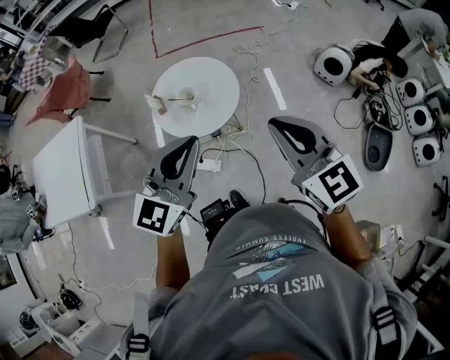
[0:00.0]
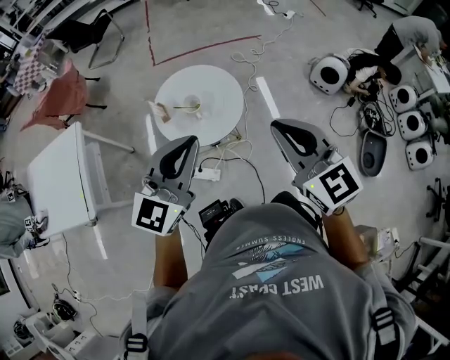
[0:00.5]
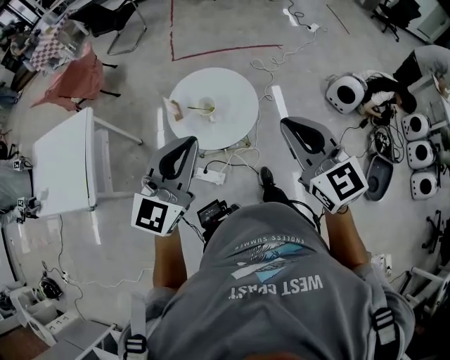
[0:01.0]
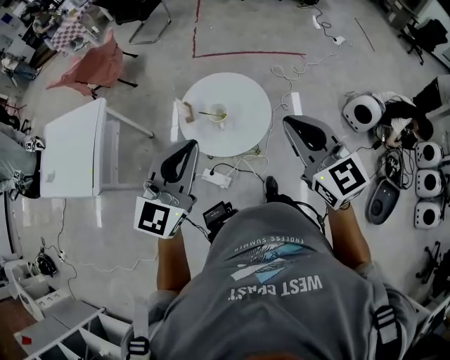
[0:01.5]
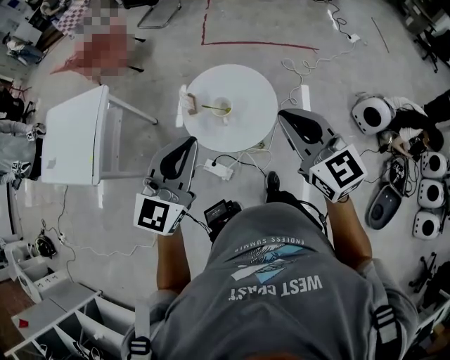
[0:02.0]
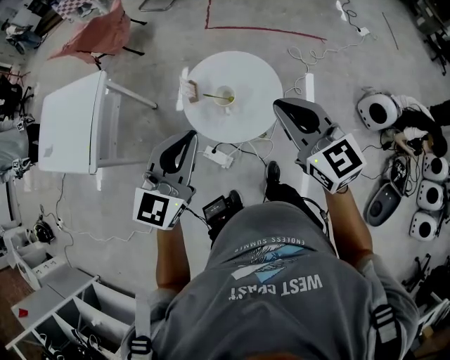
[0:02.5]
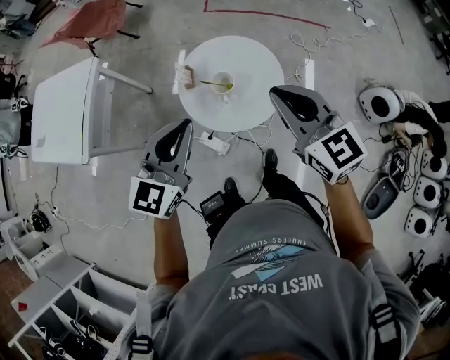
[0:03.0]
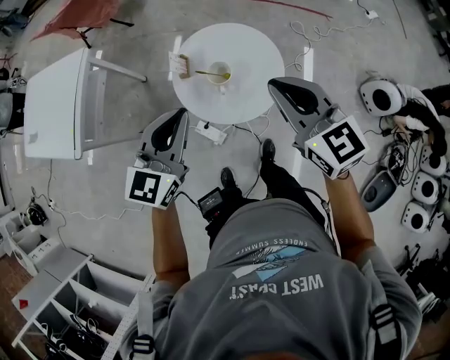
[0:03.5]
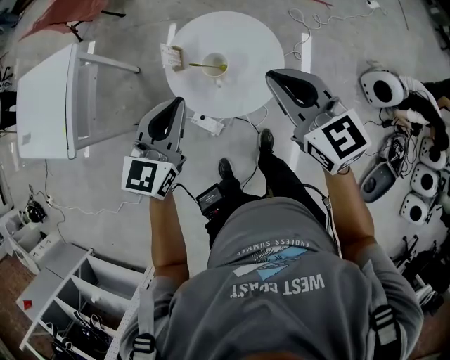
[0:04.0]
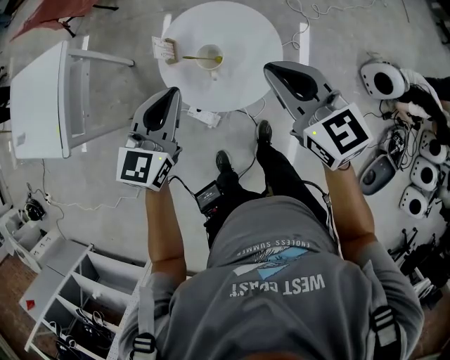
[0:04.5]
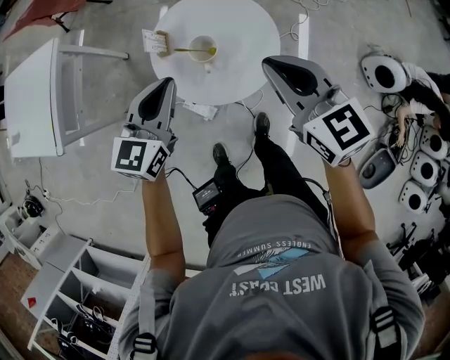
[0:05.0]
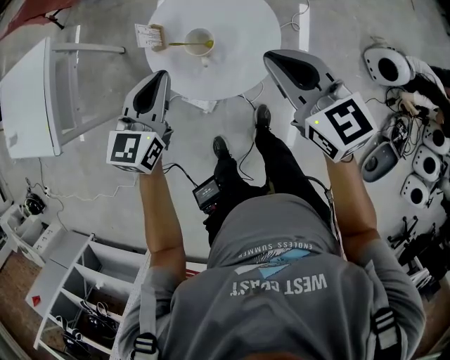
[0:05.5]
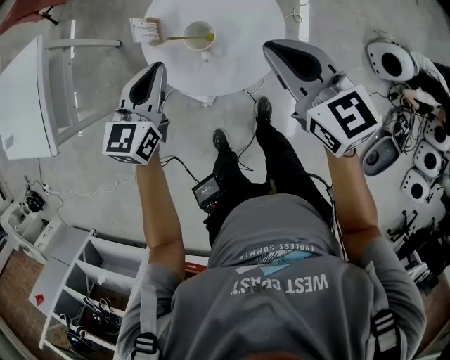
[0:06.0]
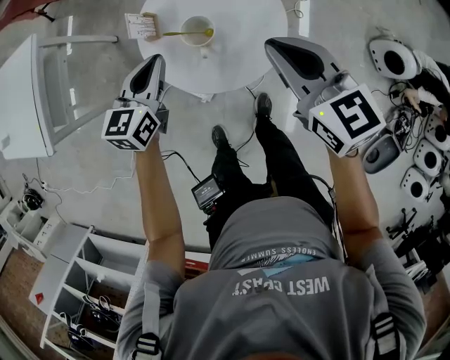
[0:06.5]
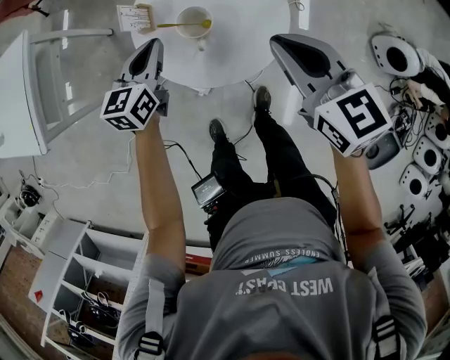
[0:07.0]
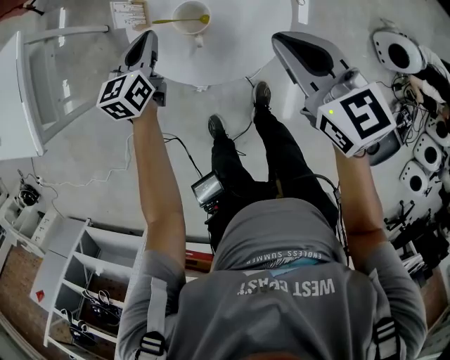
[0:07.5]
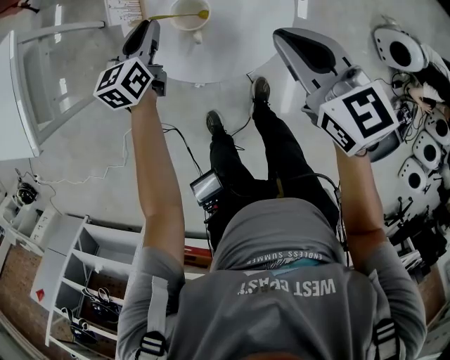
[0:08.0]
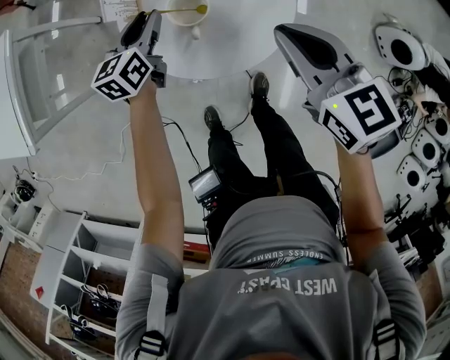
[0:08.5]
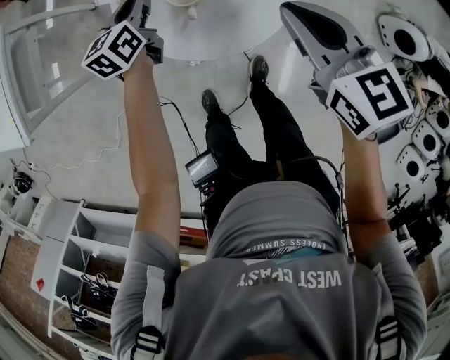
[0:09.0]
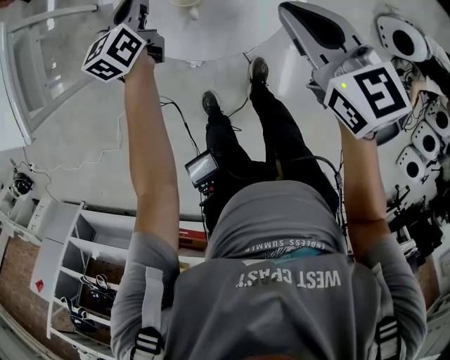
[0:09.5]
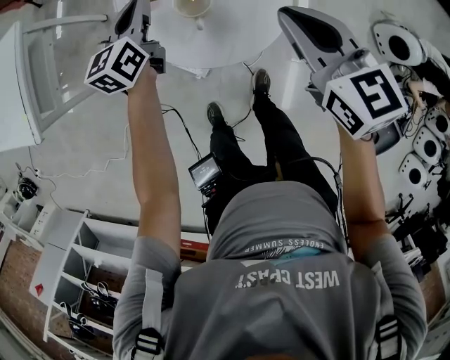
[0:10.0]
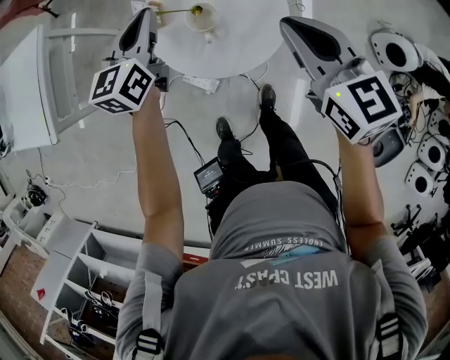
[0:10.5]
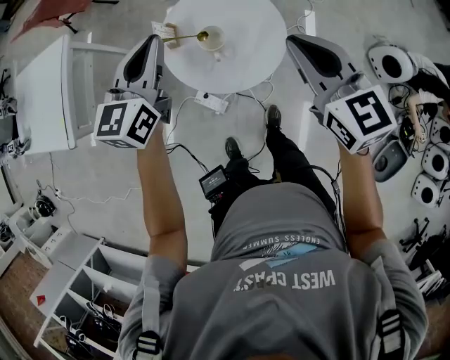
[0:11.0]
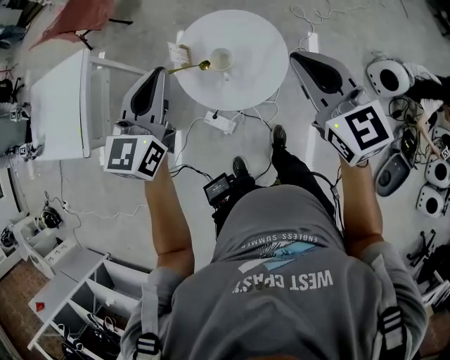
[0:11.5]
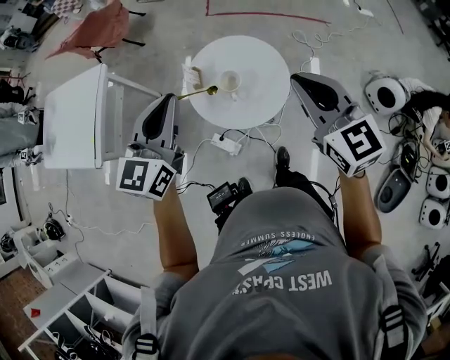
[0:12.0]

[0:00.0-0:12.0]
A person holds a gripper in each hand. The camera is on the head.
0:00.0 to 0:02.0: The left gripper heads forward and to the left, covering approximately 10 cm. The right gripper goes about 15 cm forward.
0:02.0 to 0:04.0: Both grippers move downward and forward, some 10 cm.
0:04.0 to 0:06.0: The right gripper heads downward, covering approximately 5 cm. The left gripper moves downward and forward, some 10 cm.
0:06.0 to 0:08.0: The right gripper travels downward by roughly 5 cm. Meanwhile the left gripper is displaced downward and forward by about 15 cm.
0:08.0 to 0:10.0: The left gripper goes roughly 5 cm upward.
0:10.0 to 0:12.0: The right gripper goes approximately 15 cm upward. The left gripper travels upward and backward by approximately 30 cm, and swivels some 30 degrees.

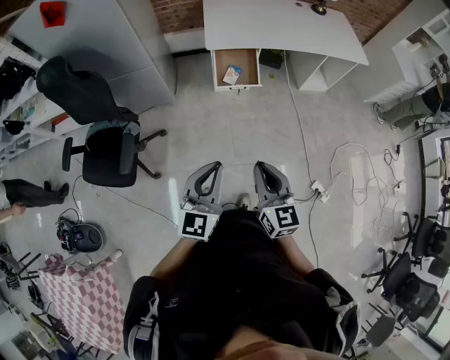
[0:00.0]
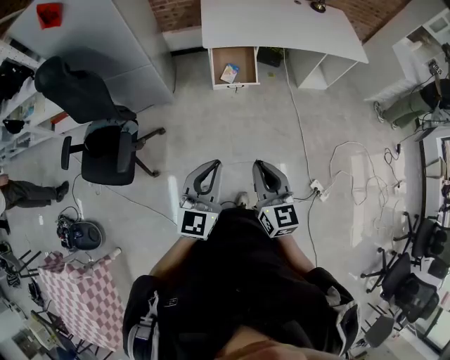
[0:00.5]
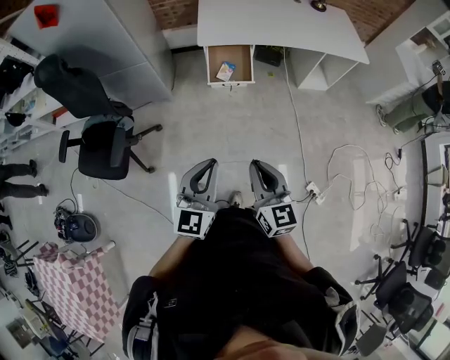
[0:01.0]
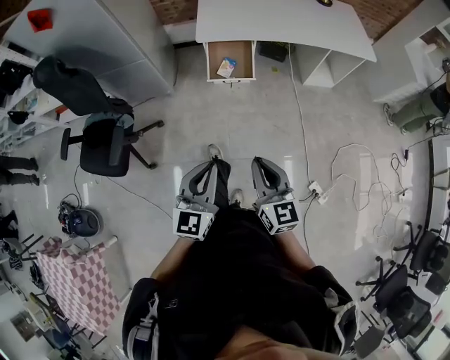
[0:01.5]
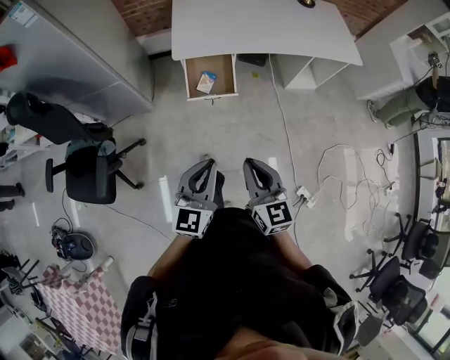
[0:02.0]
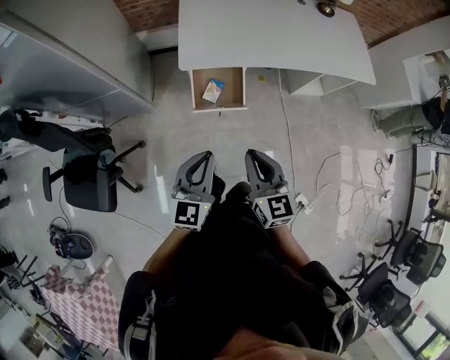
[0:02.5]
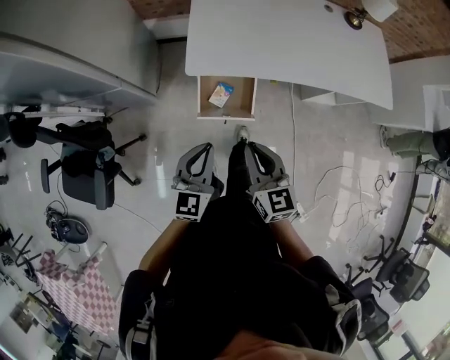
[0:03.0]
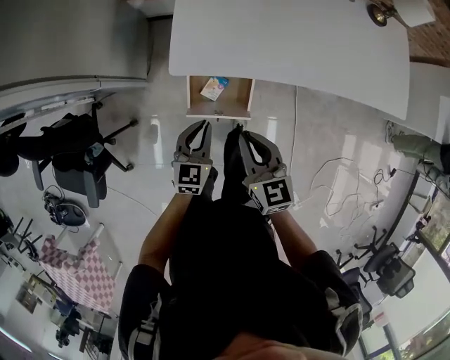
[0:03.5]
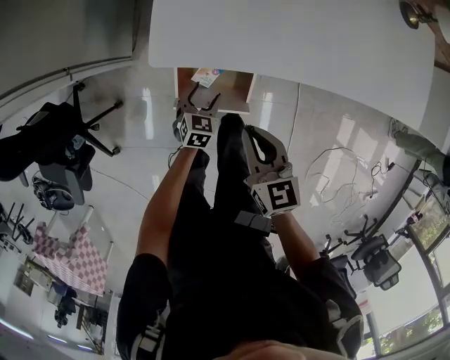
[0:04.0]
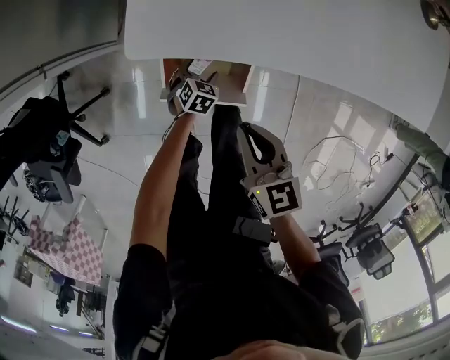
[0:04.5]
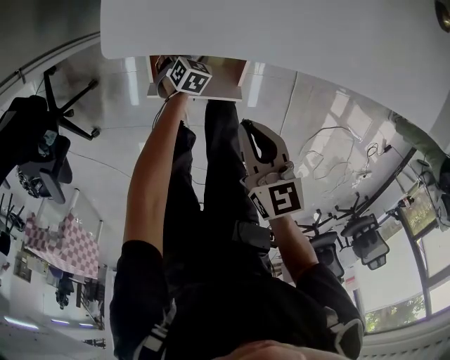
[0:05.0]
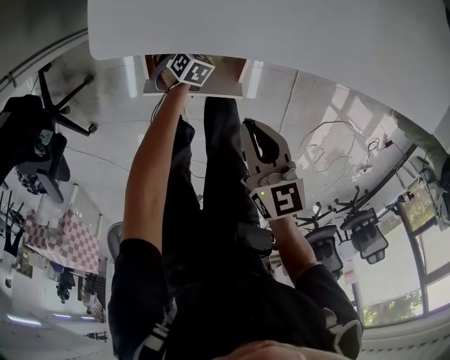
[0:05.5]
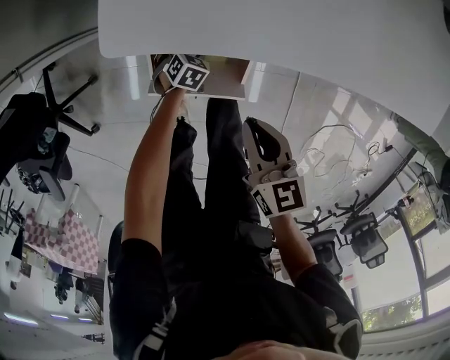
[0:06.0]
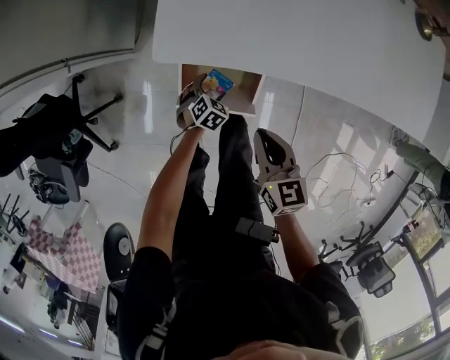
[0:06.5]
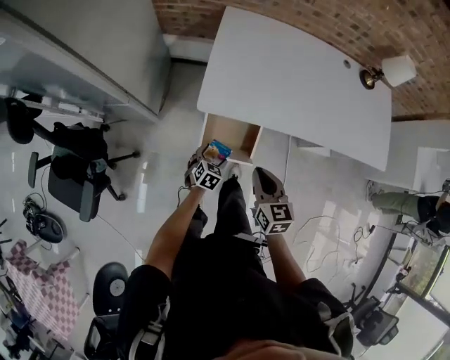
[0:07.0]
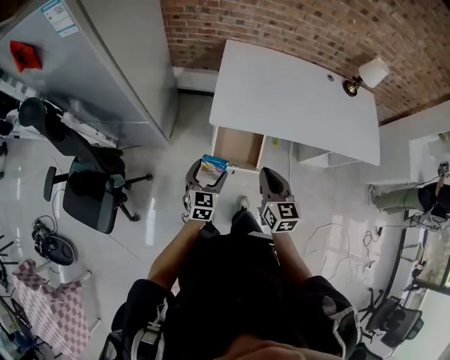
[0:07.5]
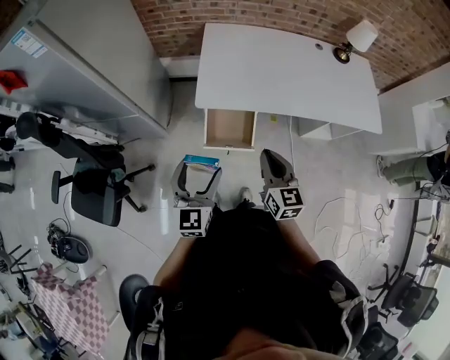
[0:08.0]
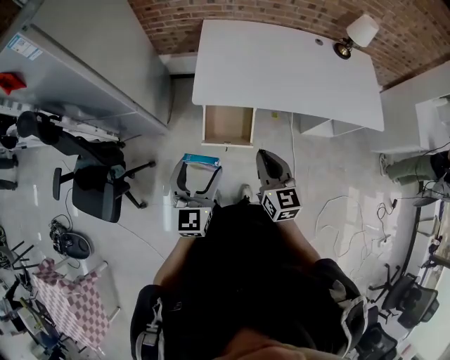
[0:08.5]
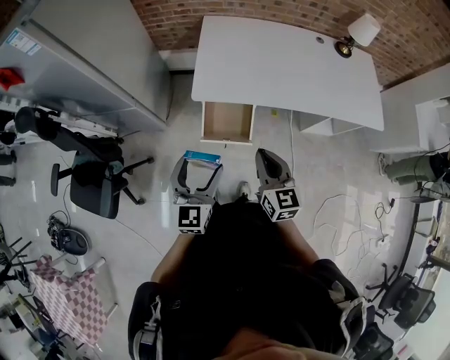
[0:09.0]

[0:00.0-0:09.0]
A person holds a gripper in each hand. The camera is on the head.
0:00.0 to 0:02.0: Both grippers move forward and to the right, about 20 cm.
0:02.0 to 0:04.5: Both grippers are carried forward, roughly 50 cm. The right gripper is displaced downward by some 30 cm, and rotates some 30 degrees, while the left gripper shifts some 60 cm downward, tilts its fingers approximately 50 degrees downward, and opens its fingers.
0:04.5 to 0:07.0: The two grippers go roughly 20 cm upward and backward.
0:07.0 to 0:09.0: The right gripper shifts about 20 cm upward and backward, while the left gripper is displaced upward by some 40 cm, and tips its fingers upward by roughly 40 degrees.

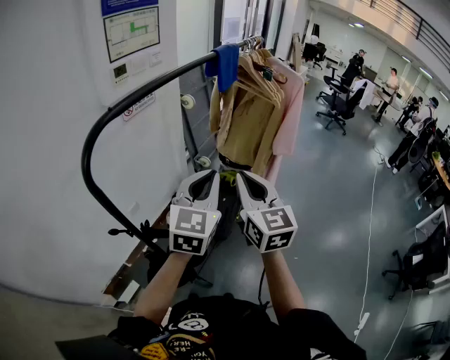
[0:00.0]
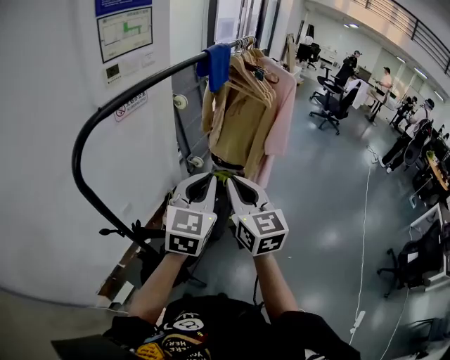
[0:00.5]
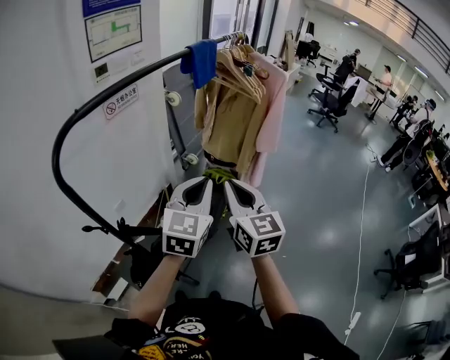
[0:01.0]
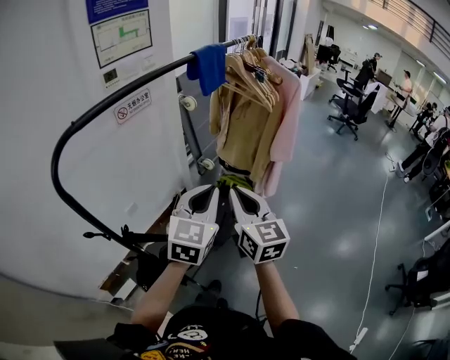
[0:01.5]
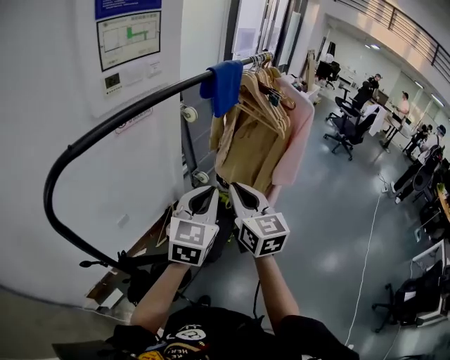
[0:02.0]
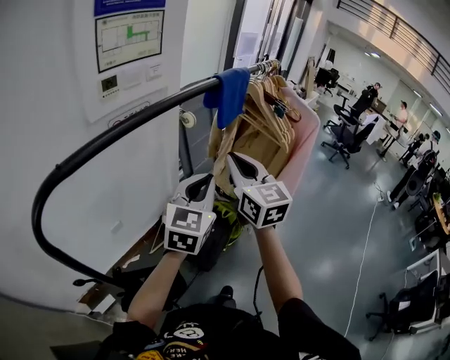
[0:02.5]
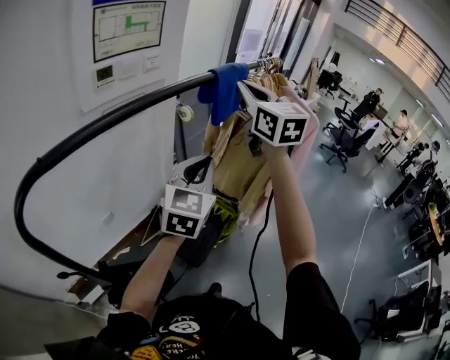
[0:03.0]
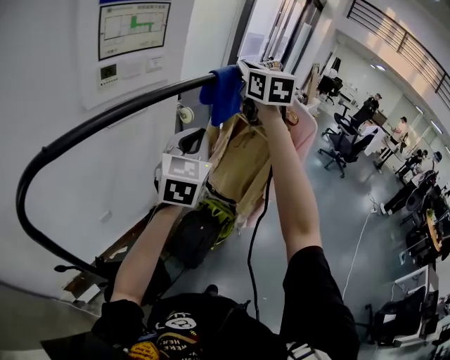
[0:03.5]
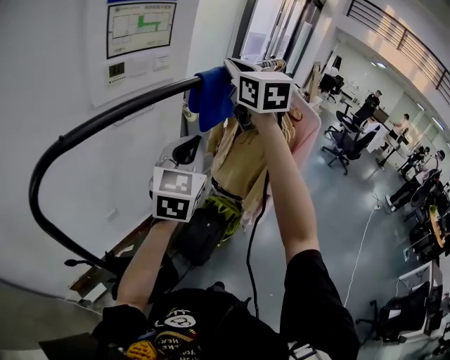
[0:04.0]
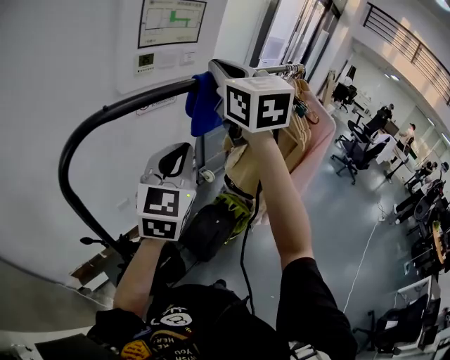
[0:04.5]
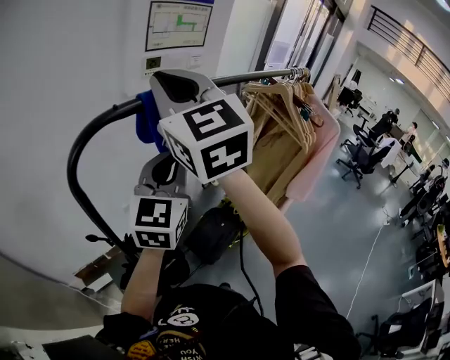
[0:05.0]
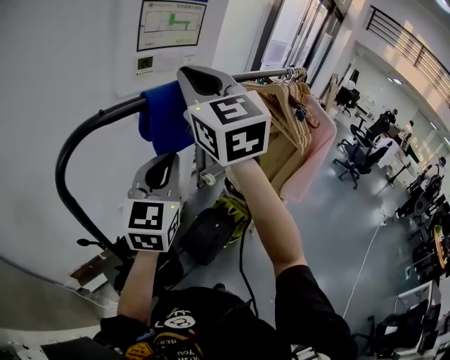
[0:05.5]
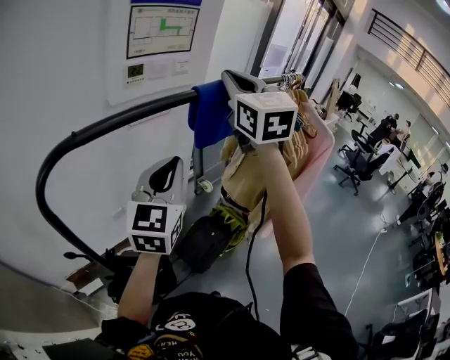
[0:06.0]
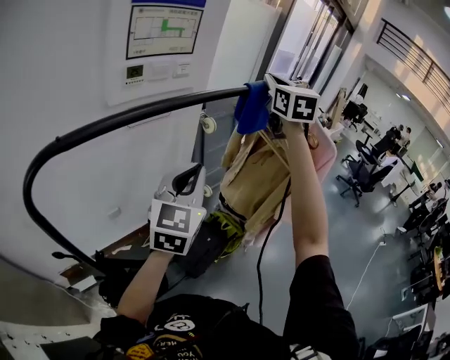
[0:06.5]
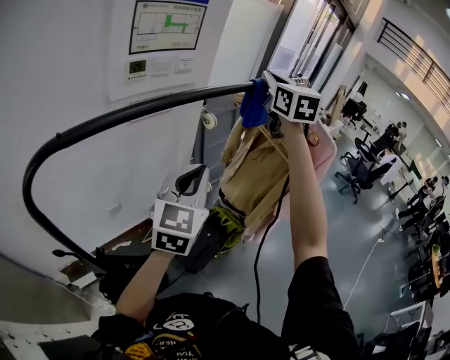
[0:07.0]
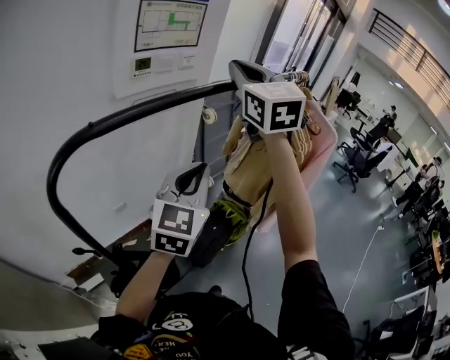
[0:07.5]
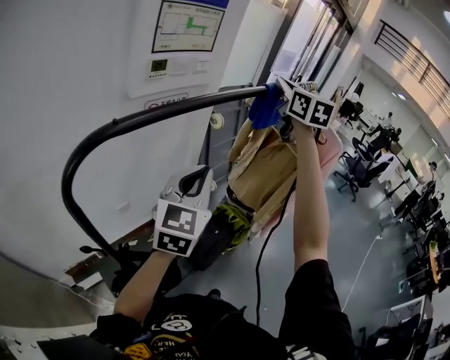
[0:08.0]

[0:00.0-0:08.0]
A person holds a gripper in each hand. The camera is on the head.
0:00.0 to 0:02.0: The two grippers go about 10 cm forward.
0:02.0 to 0:04.0: The right gripper is displaced upward and forward by approximately 30 cm; the left gripper is displaced forward and upward by some 15 cm.
0:04.0 to 0:06.0: The right gripper goes to the left and returns, approximately 25 cm each way. The left gripper is displaced to the left by approximately 10 cm.
0:06.0 to 0:08.0: The left gripper goes to the right and returns, roughly 5 cm each way. Meanwhile the right gripper goes left and right, about 15 cm each way, reversing 2 times.
